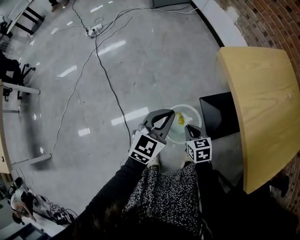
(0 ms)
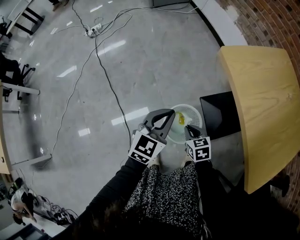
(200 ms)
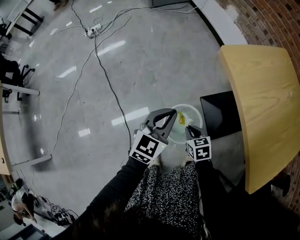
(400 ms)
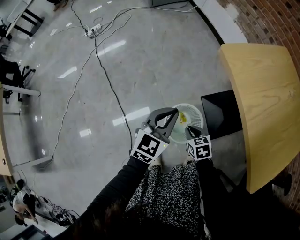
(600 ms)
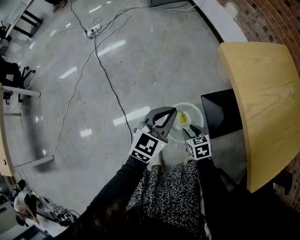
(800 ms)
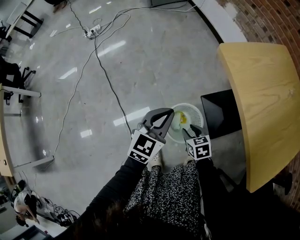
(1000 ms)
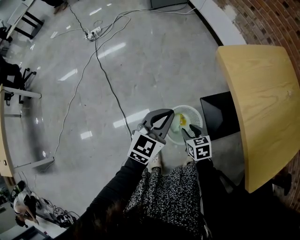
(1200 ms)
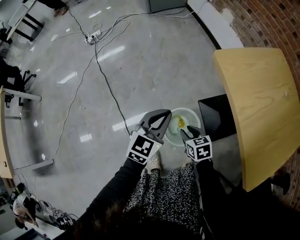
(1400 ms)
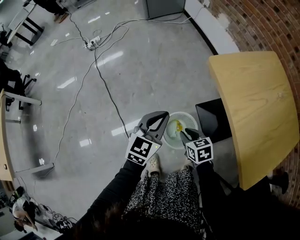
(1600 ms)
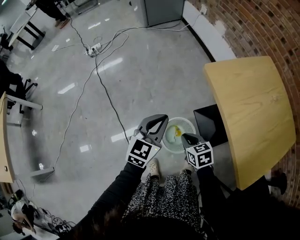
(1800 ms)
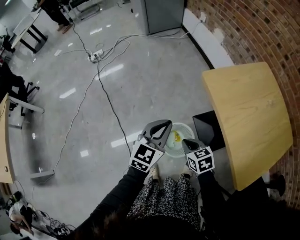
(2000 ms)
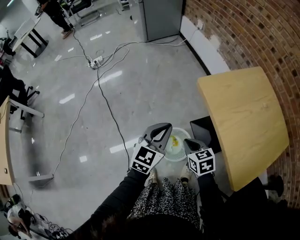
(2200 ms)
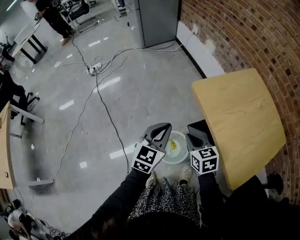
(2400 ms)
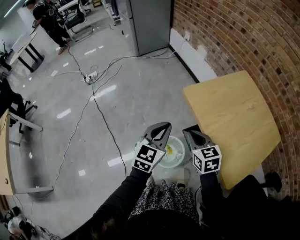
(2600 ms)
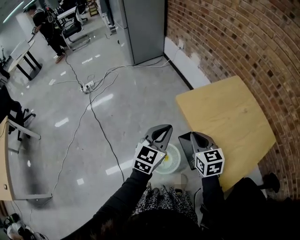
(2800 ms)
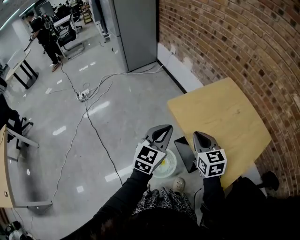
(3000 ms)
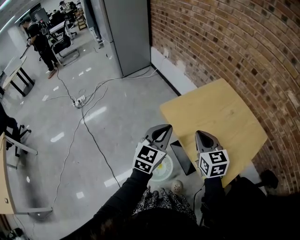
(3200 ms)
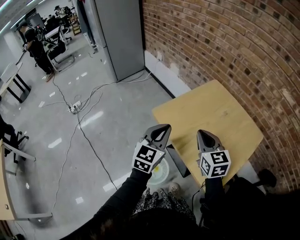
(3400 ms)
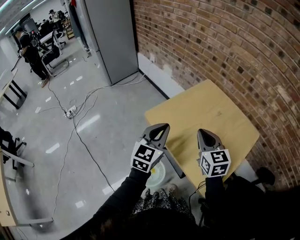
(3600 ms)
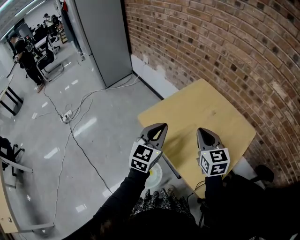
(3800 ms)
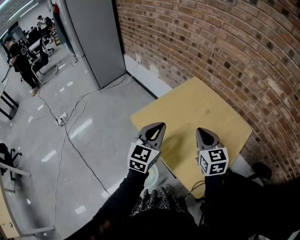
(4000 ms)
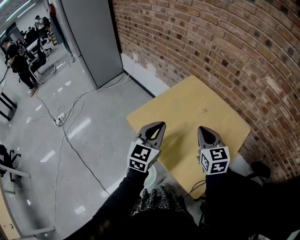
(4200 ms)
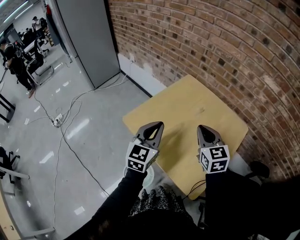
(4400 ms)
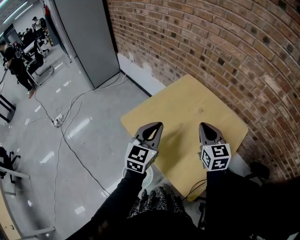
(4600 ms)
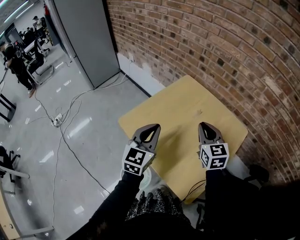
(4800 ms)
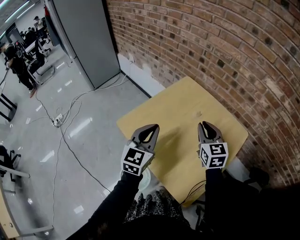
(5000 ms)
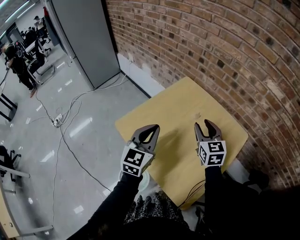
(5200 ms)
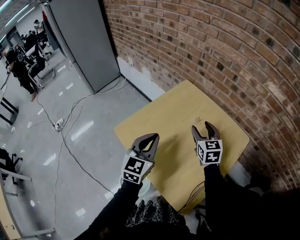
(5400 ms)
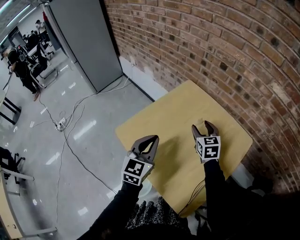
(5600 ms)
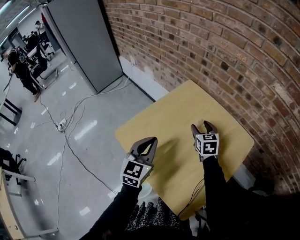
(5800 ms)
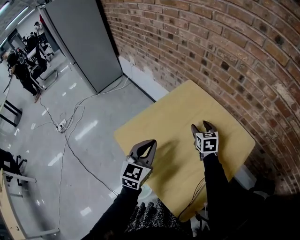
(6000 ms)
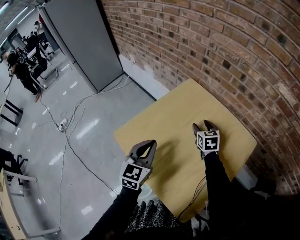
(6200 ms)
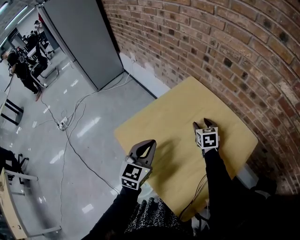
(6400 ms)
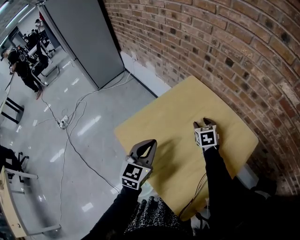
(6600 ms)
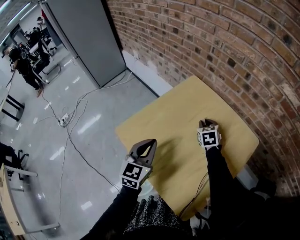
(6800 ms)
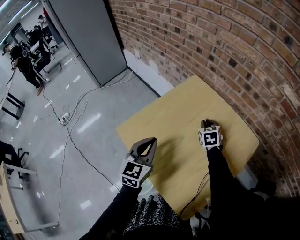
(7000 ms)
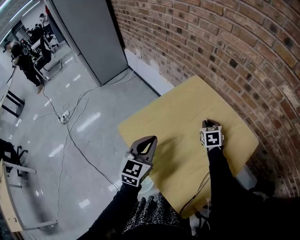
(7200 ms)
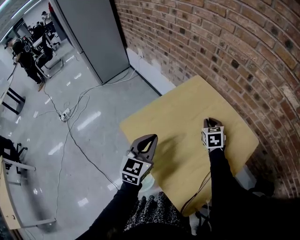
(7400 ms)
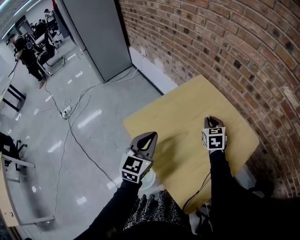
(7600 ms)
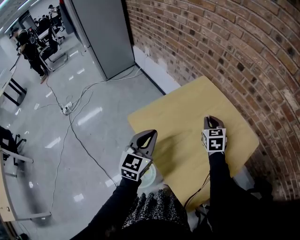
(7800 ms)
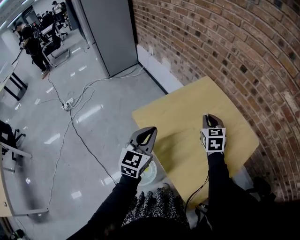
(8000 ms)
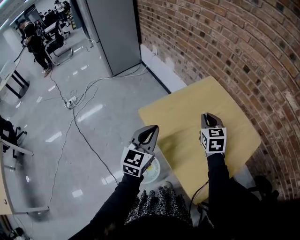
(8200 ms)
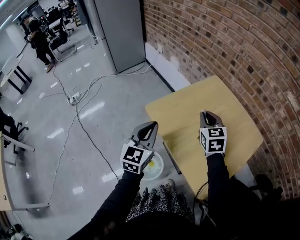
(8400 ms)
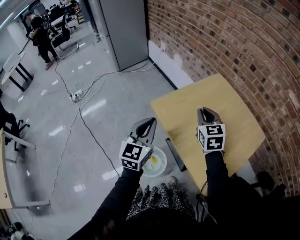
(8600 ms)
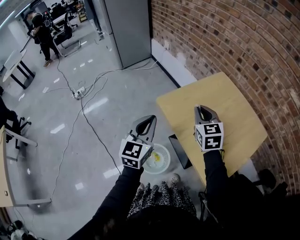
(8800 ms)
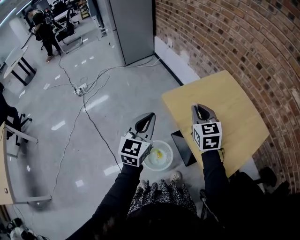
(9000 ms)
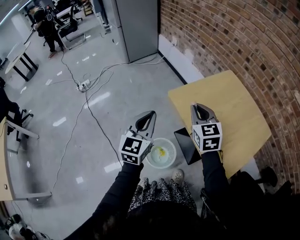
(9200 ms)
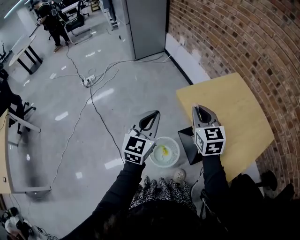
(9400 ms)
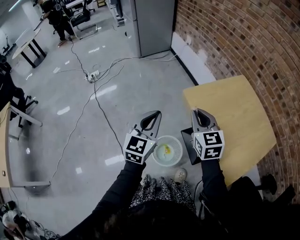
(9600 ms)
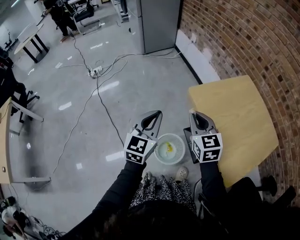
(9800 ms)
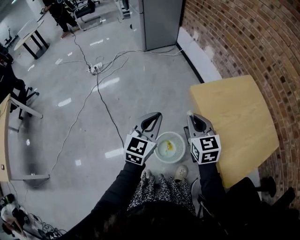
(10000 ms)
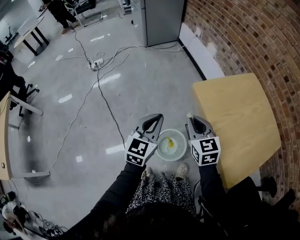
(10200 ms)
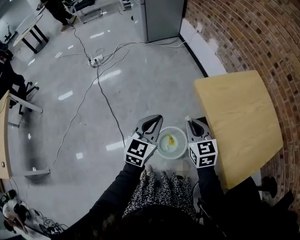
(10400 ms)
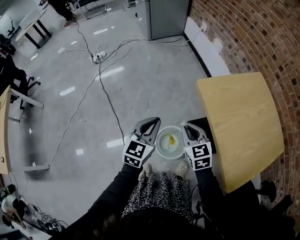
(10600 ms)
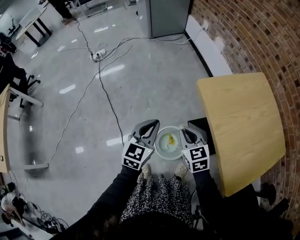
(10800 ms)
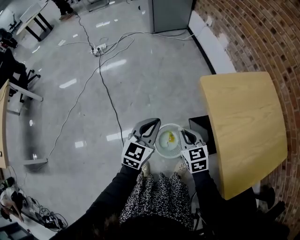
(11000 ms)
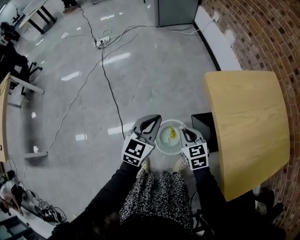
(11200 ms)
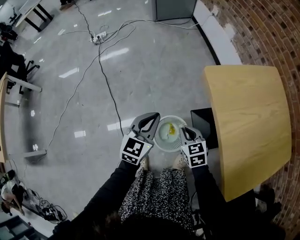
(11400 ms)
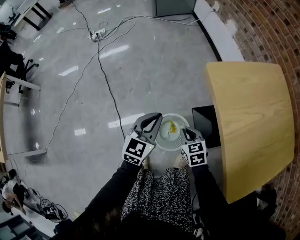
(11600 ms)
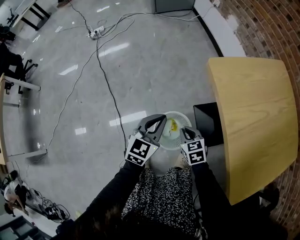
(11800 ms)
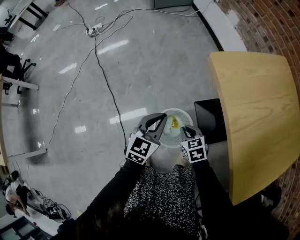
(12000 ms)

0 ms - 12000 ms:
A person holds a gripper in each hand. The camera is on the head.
0 ms - 1600 ms: The grippers stay close to where they were, moving slightly.
1600 ms - 3000 ms: The two grippers go about 30 cm upward and to the right. The right gripper swivels approximately 30 degrees, and closes.
3000 ms - 4400 ms: The grippers both shift to the right and forward by approximately 20 cm.
4400 ms - 6000 ms: The right gripper goes roughly 25 cm forward and downward, and opens up, while the left gripper heads downward and forward, covering some 10 cm.
6000 ms - 7600 ms: The right gripper closes up, while the left gripper ends up roughly 5 cm from where it was.
7600 ms - 9000 ms: The left gripper travels to the left and backward by about 20 cm. Meanwhile the right gripper heads to the left, backward and upward, covering about 35 cm, and changes its angle by about 20 degrees.
9000 ms - 10400 ms: The right gripper is displaced to the left, downward and backward by approximately 20 cm; the left gripper shifts about 15 cm to the left and downward.
10400 ms - 12000 ms: The left gripper goes roughly 20 cm downward; the right gripper heads downward, covering about 30 cm, and changes its angle by roughly 30 degrees.

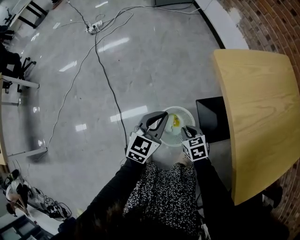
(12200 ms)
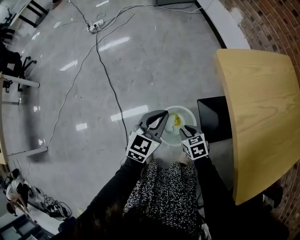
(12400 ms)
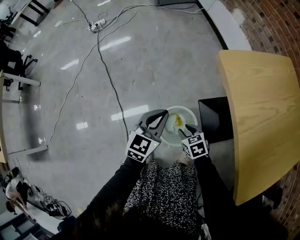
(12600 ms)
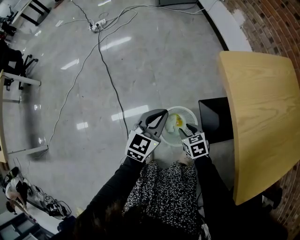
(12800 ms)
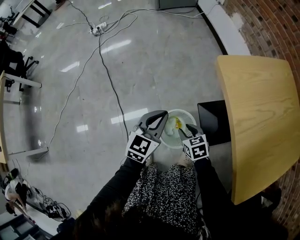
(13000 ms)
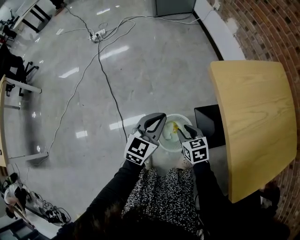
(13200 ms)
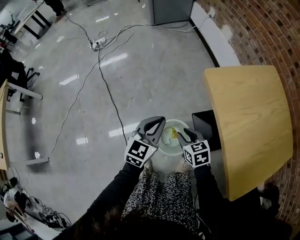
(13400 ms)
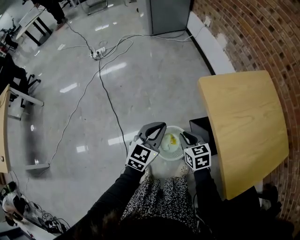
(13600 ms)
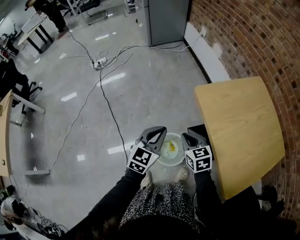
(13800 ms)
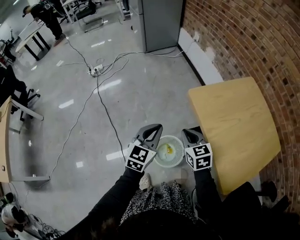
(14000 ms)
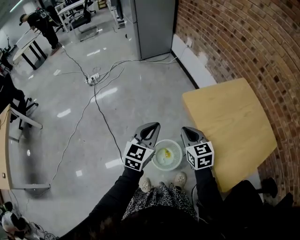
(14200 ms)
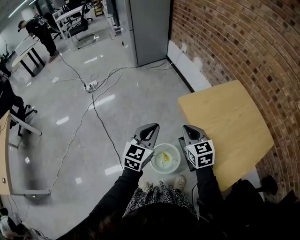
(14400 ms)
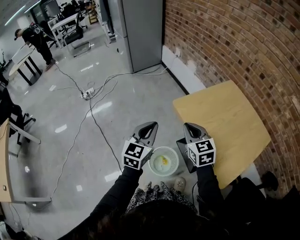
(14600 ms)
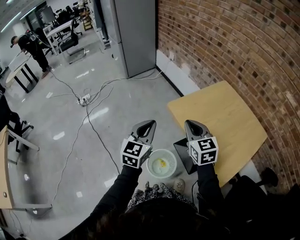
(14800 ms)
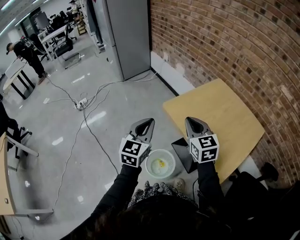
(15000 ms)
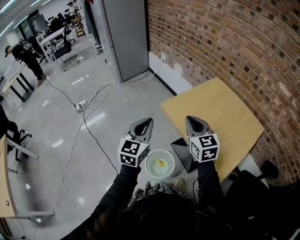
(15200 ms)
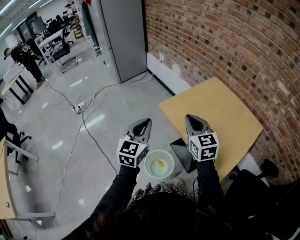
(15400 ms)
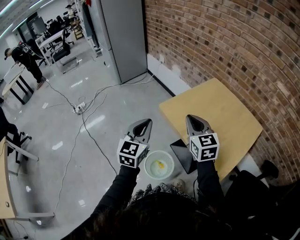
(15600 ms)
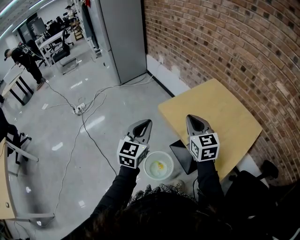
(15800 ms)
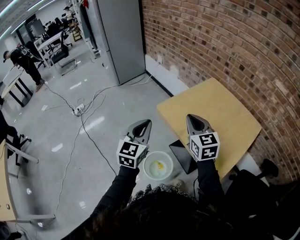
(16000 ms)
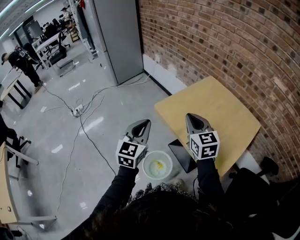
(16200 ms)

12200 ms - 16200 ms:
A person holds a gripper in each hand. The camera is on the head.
12200 ms - 13600 ms: The two grippers go some 15 cm upward.
13600 ms - 14800 ms: Both grippers travel together upward, some 25 cm. The right gripper swivels some 30 degrees.
14800 ms - 16200 ms: The right gripper is displaced to the right by about 5 cm.

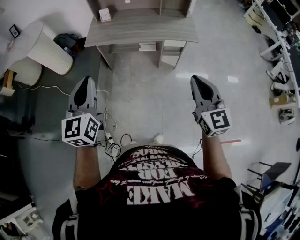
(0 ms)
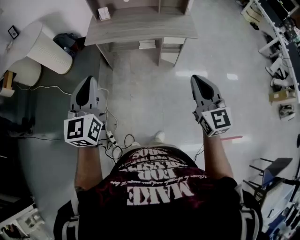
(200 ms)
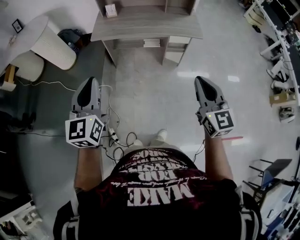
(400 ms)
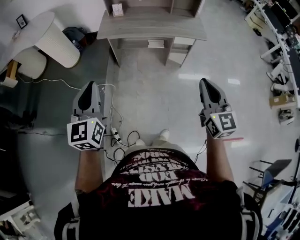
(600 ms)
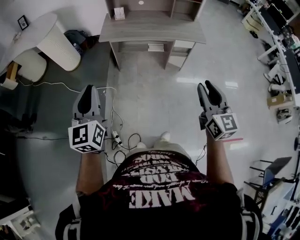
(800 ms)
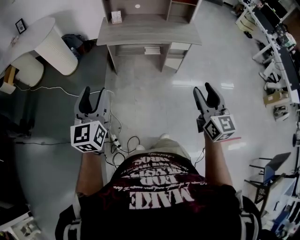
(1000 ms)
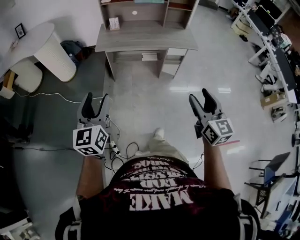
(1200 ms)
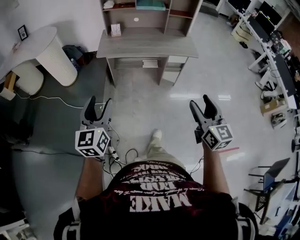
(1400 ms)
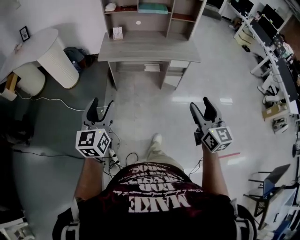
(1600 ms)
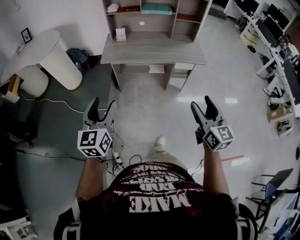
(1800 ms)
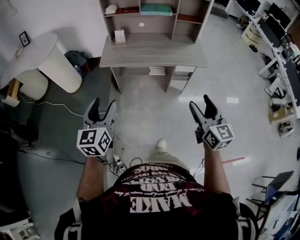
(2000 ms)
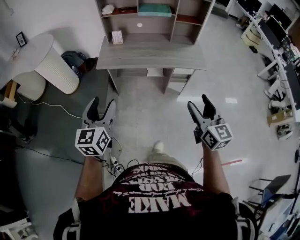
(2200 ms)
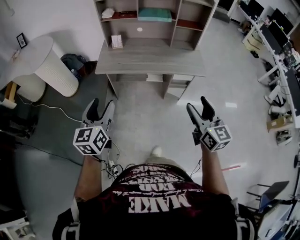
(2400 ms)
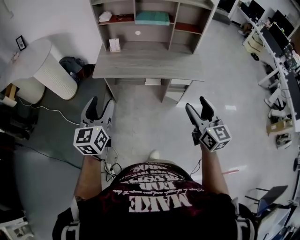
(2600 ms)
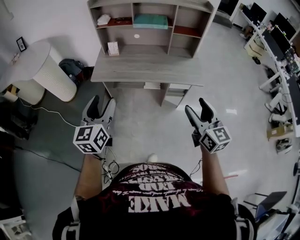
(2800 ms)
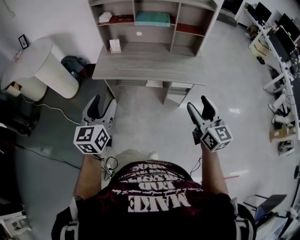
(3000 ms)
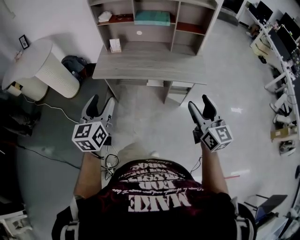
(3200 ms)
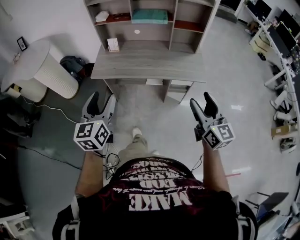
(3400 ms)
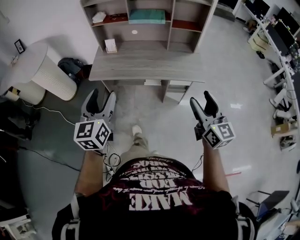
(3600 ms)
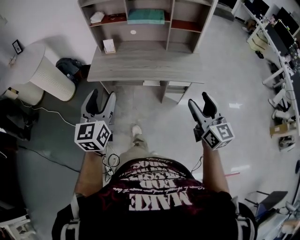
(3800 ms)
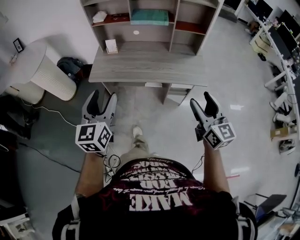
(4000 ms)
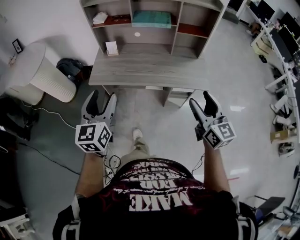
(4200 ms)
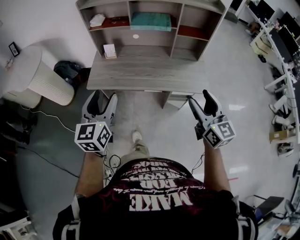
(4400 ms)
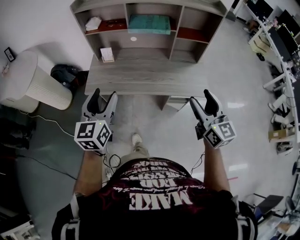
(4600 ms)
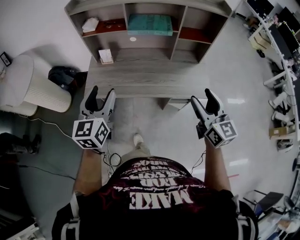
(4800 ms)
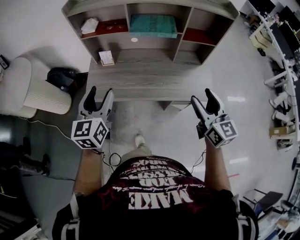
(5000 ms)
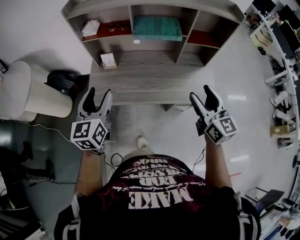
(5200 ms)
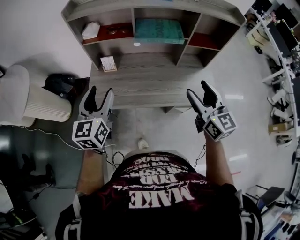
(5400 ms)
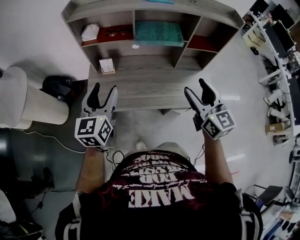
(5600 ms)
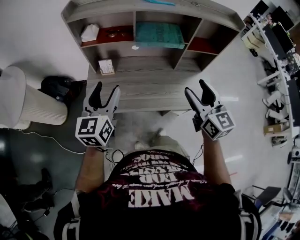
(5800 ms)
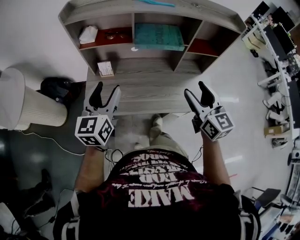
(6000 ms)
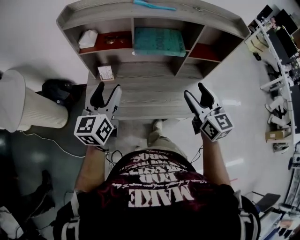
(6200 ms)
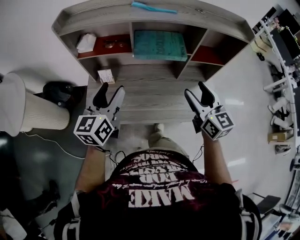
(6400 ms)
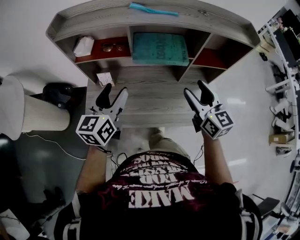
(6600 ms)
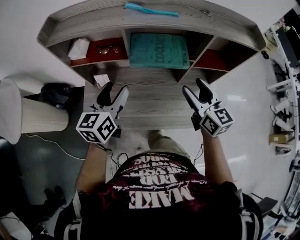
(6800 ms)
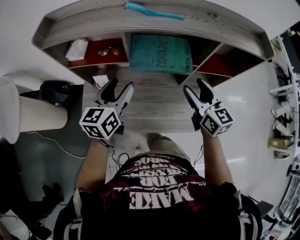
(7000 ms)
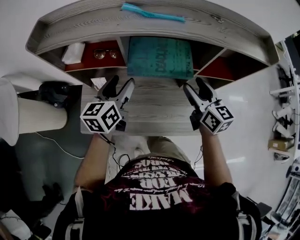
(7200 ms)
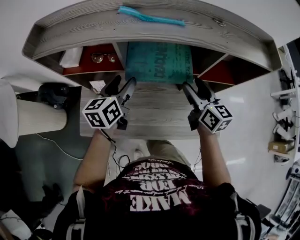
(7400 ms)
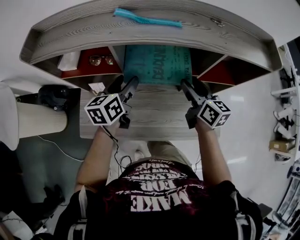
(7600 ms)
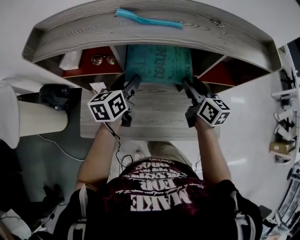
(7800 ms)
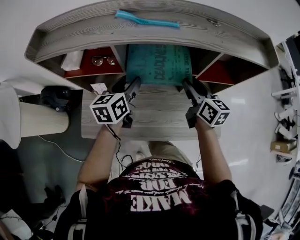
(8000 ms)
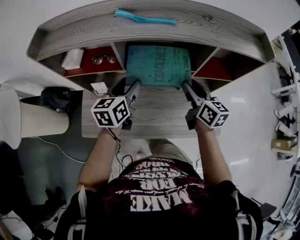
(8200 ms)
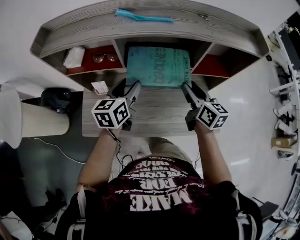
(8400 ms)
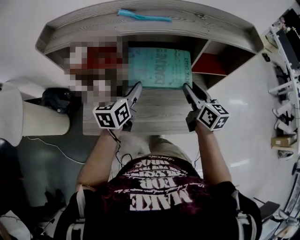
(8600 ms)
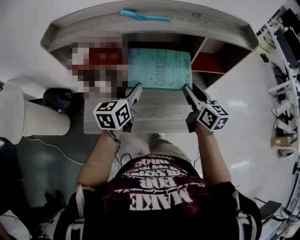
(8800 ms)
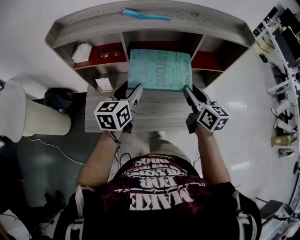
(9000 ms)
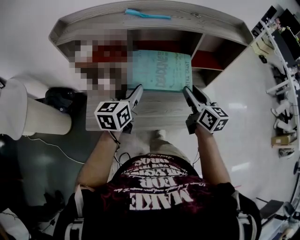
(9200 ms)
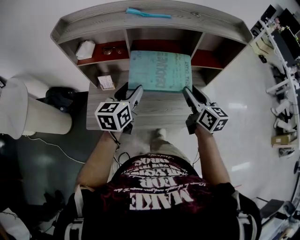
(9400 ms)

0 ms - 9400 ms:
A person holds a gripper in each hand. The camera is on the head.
0 ms - 1600 ms: Both grippers travel together to the left and backward, roughly 15 cm. The right gripper opens, while the left gripper opens up.
1600 ms - 3200 ms: Both grippers travel together forward and to the right, approximately 25 cm.
3200 ms - 4800 ms: Both grippers move forward, some 25 cm.
4800 ms - 6200 ms: The grippers both shift forward by approximately 20 cm.
6200 ms - 7800 ms: The left gripper shifts some 30 cm forward, downward and to the right, and changes its angle by about 20 degrees. The right gripper travels forward by roughly 25 cm, turns by approximately 20 degrees, and closes its fingers.
7800 ms - 9400 ms: The two grippers go roughly 15 cm backward.
